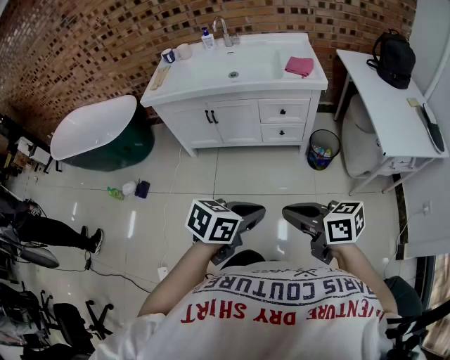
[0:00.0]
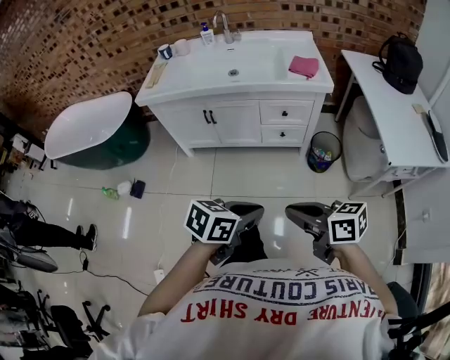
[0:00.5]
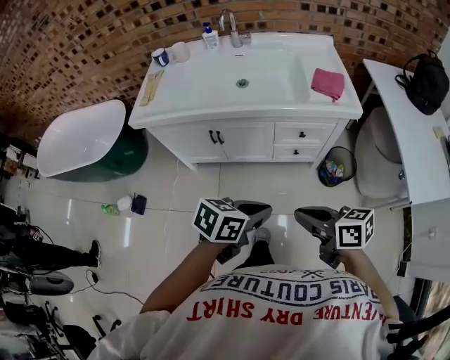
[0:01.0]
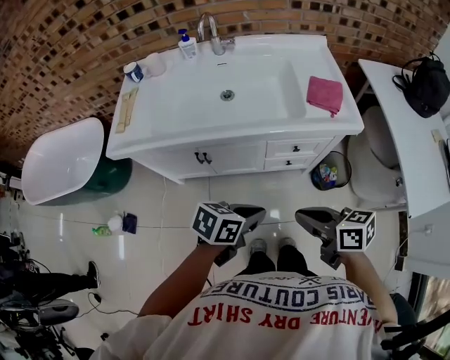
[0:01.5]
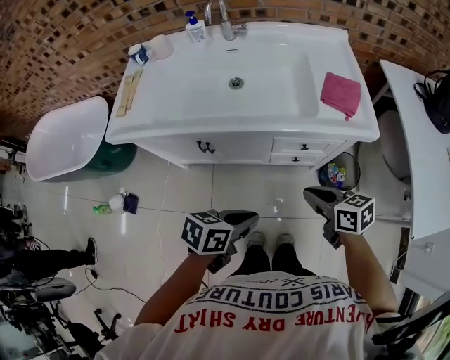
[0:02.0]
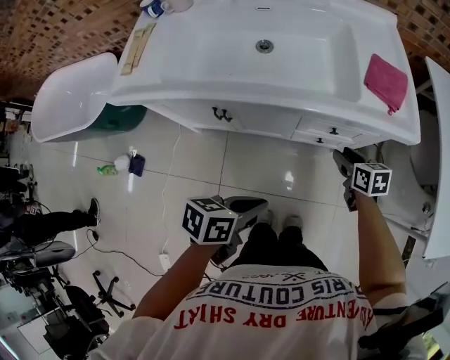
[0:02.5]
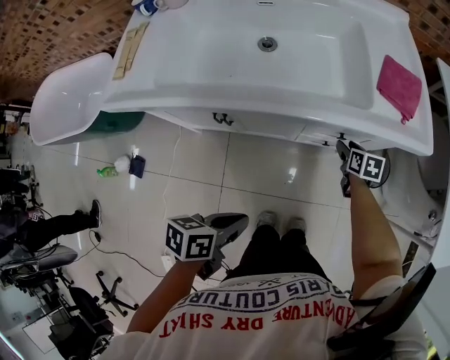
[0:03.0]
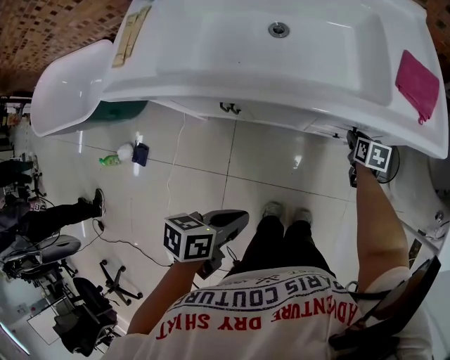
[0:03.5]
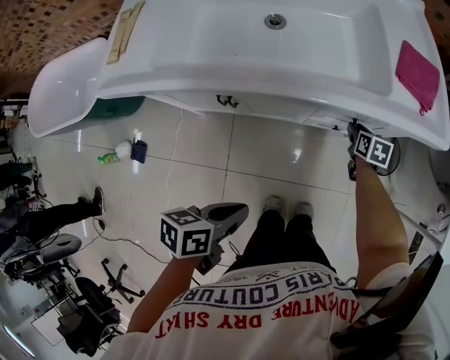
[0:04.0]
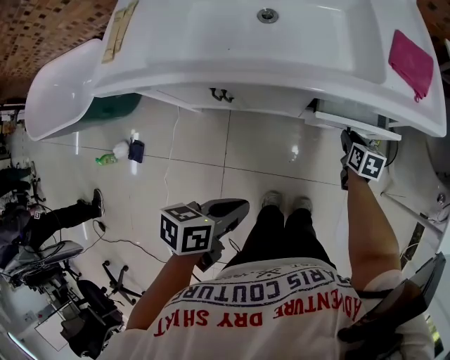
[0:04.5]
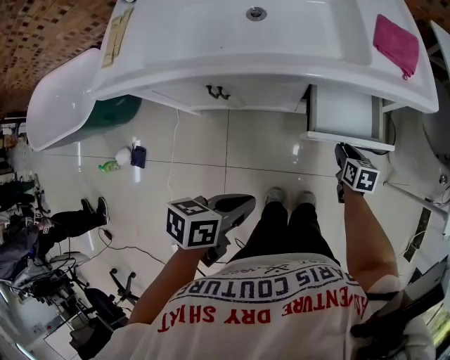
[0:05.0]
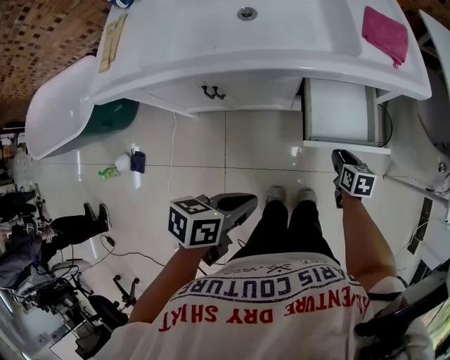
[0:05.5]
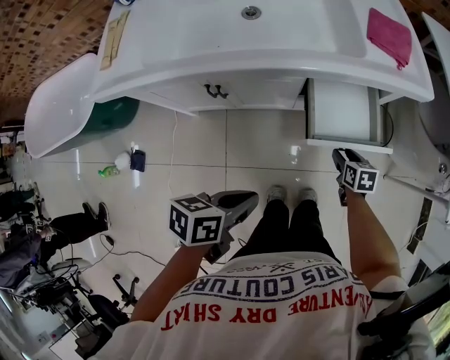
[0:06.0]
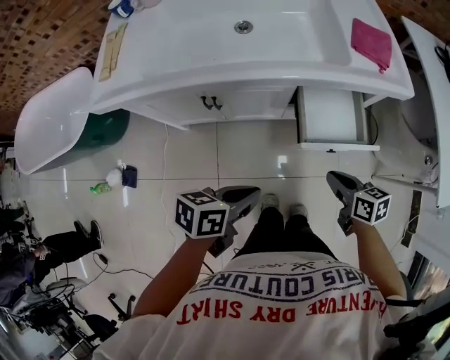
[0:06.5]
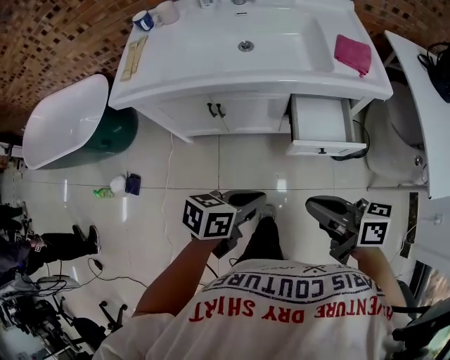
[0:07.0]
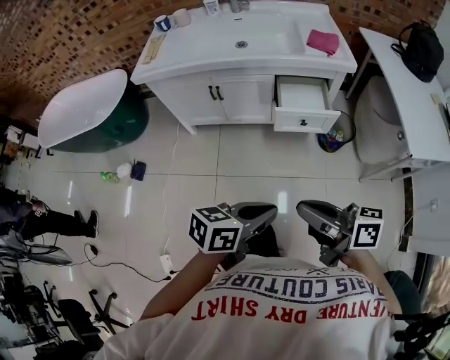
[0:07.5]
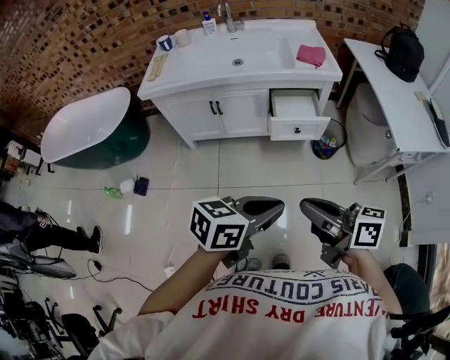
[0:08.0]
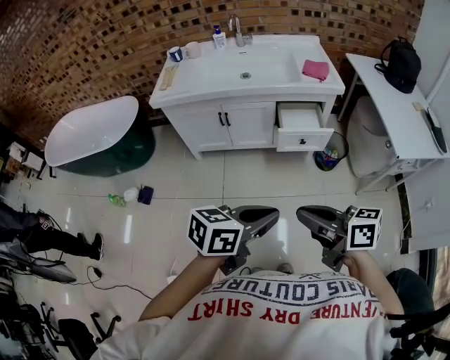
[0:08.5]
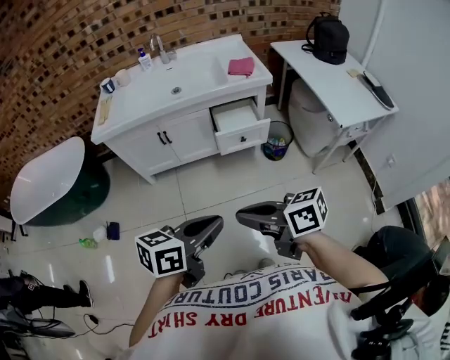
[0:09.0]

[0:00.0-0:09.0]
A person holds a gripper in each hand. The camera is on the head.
0.0 to 2.0 s: The two grippers travel together, about 40 cm.
2.0 to 4.5 s: The right gripper is displaced downward and forward by roughly 35 cm, changes its angle by approximately 40 degrees, and opens. The left gripper heads downward and to the left, covering about 15 cm.
4.5 to 7.0 s: The left gripper shifts by approximately 10 cm, and turns by approximately 20 degrees. Meanwhile the right gripper travels upward by roughly 35 cm, tips its fingers upward by roughly 40 degrees, and closes its fingers.
7.0 to 9.0 s: The left gripper ends up about 40 cm from where it was. Meanwhile the right gripper ends up roughly 35 cm from where it was.

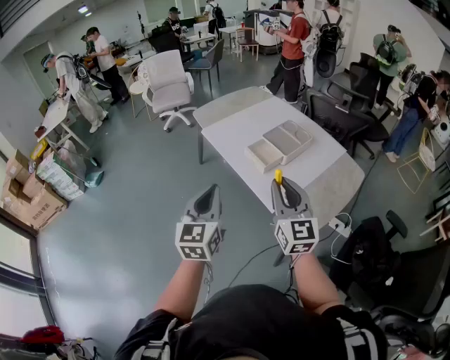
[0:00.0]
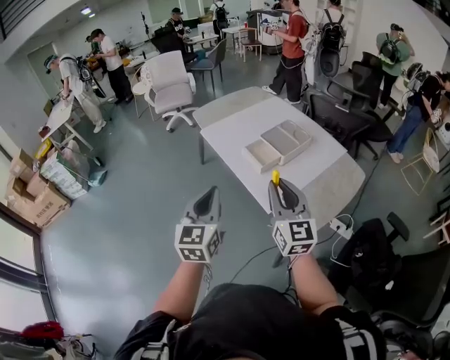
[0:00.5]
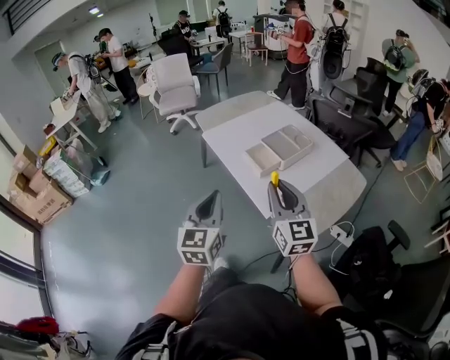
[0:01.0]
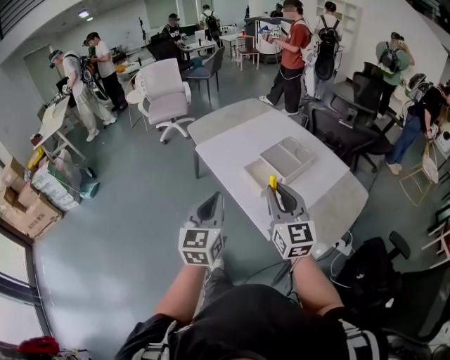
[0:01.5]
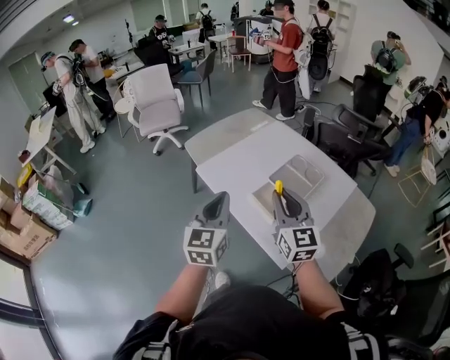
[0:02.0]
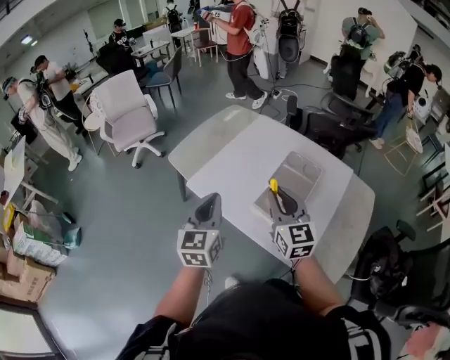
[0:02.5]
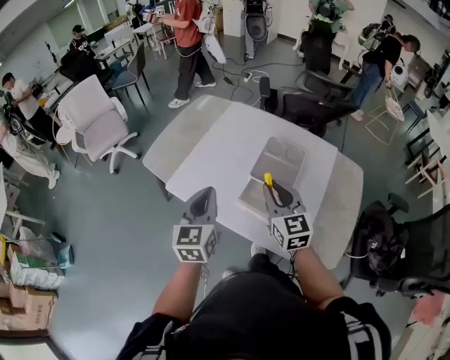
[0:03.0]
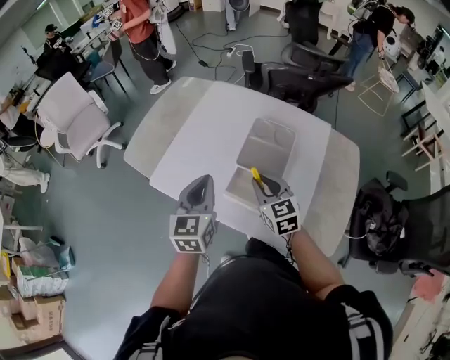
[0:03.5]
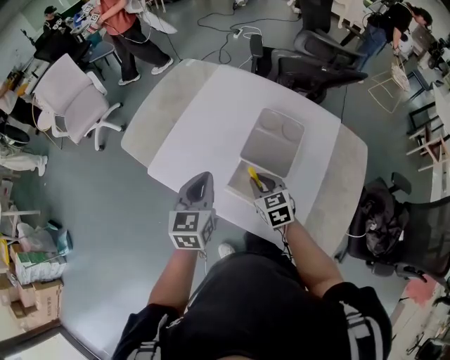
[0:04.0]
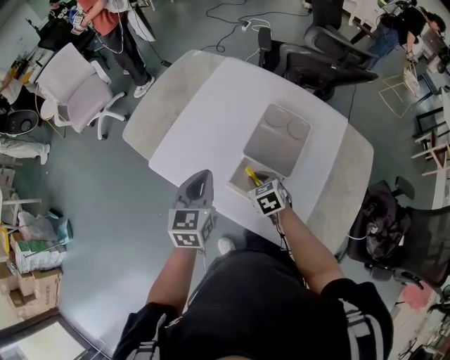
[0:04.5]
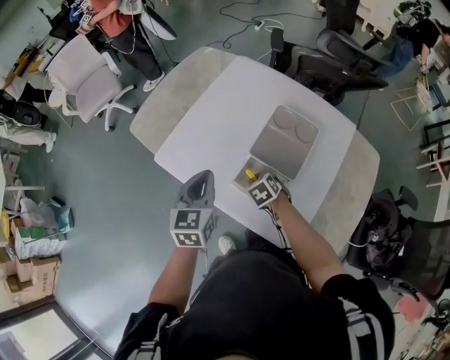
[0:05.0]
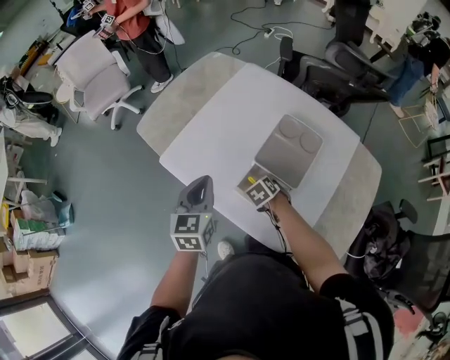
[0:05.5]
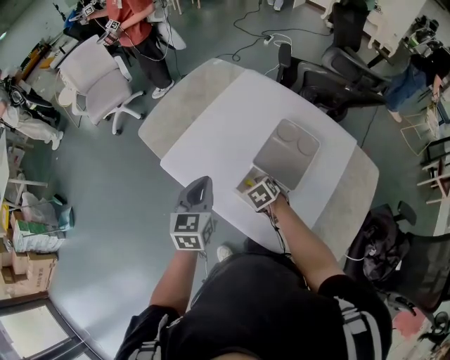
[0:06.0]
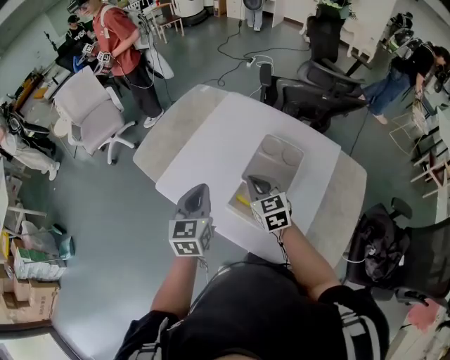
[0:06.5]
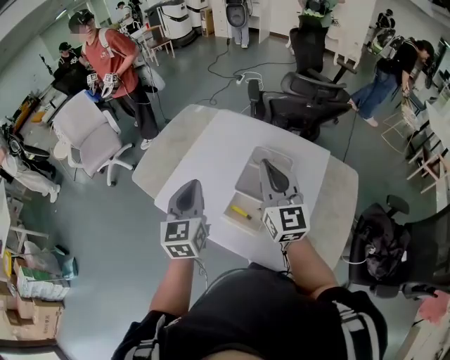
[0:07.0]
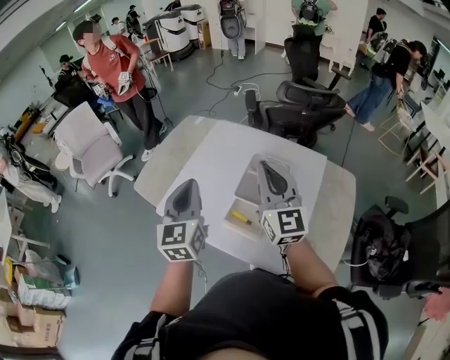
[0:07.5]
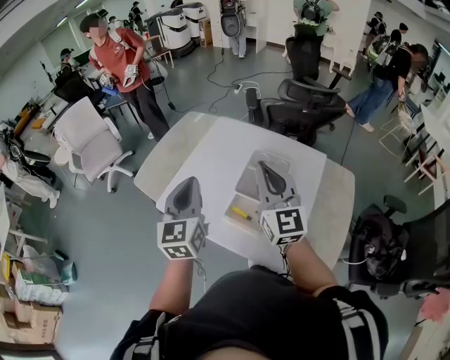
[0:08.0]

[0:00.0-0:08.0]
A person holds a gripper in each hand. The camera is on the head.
0.0 to 2.0 s: The two grippers go approximately 25 cm forward.
2.0 to 4.0 s: The right gripper travels downward and forward by approximately 30 cm, and points its fingers about 40 degrees further downward. The left gripper heads forward and downward, covering some 25 cm, and rotates approximately 20 degrees.
4.0 to 6.0 s: The right gripper travels downward by some 10 cm, and rotates roughly 30 degrees.
6.0 to 8.0 s: The left gripper shifts some 15 cm upward, and rotates roughly 20 degrees; the right gripper shifts about 40 cm upward, points its fingers approximately 70 degrees further upward, and closes up.

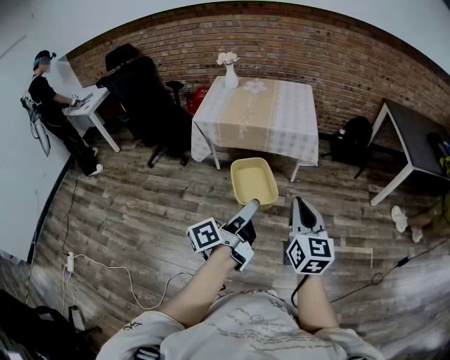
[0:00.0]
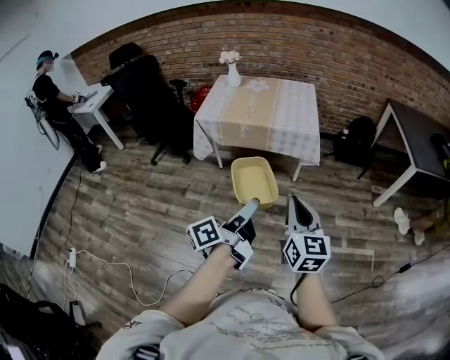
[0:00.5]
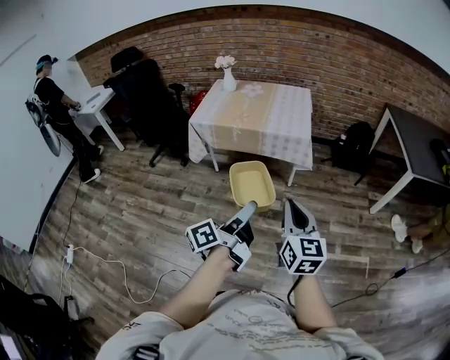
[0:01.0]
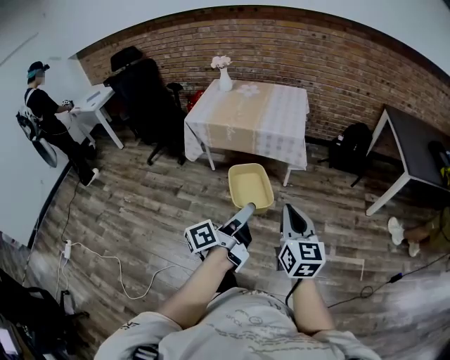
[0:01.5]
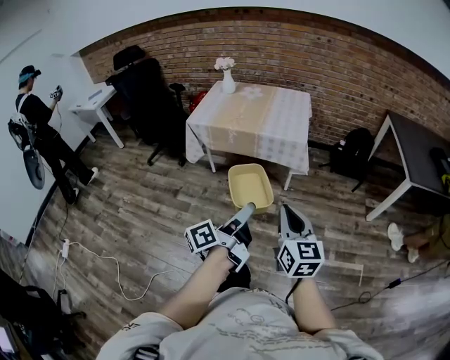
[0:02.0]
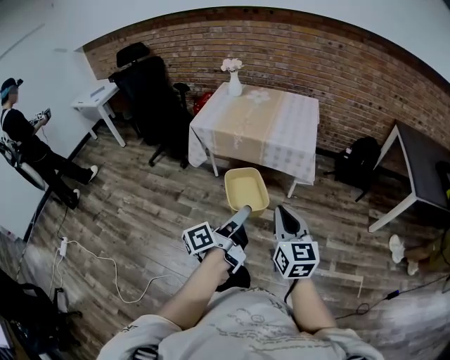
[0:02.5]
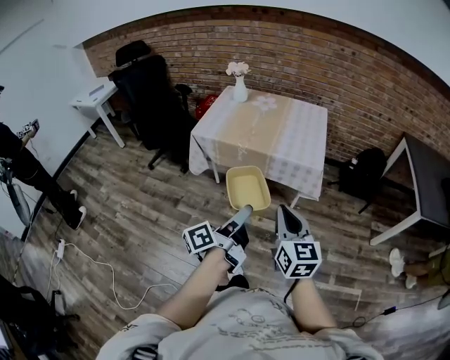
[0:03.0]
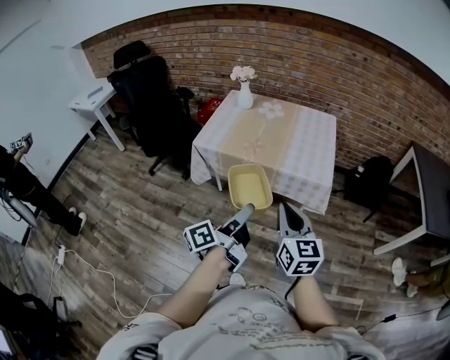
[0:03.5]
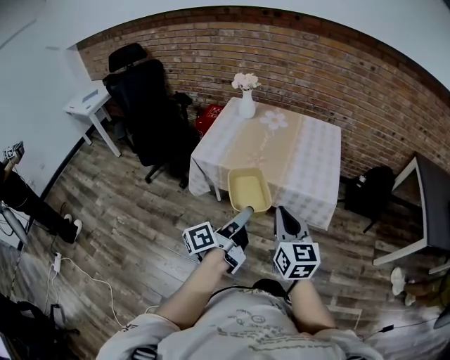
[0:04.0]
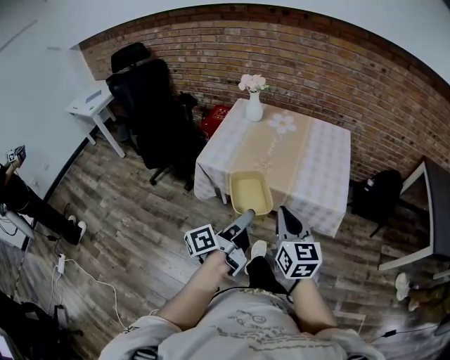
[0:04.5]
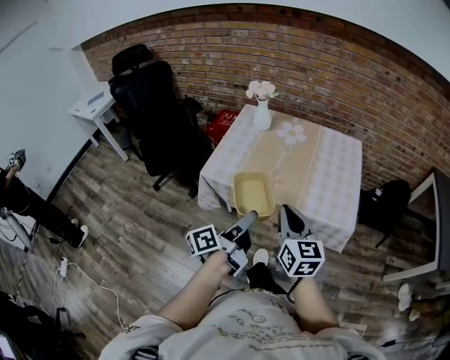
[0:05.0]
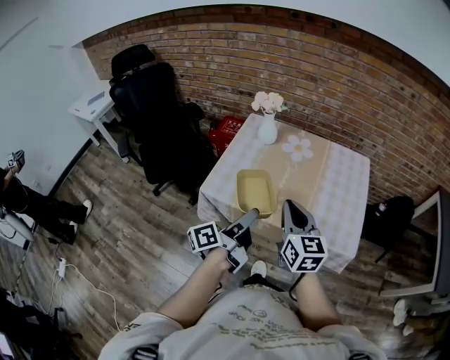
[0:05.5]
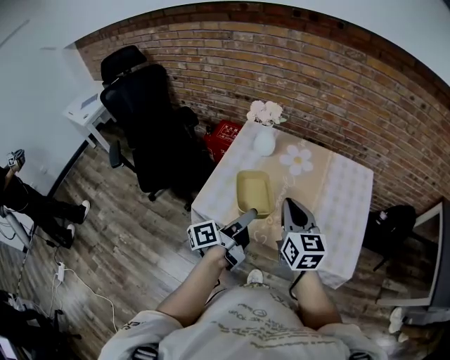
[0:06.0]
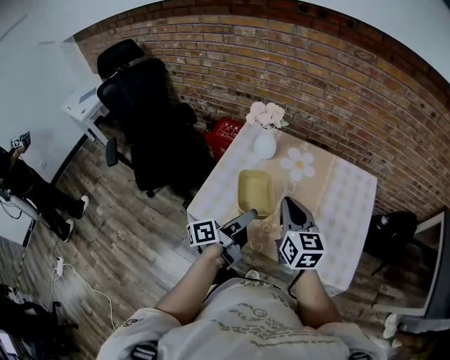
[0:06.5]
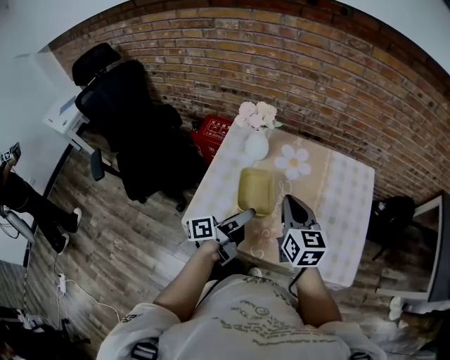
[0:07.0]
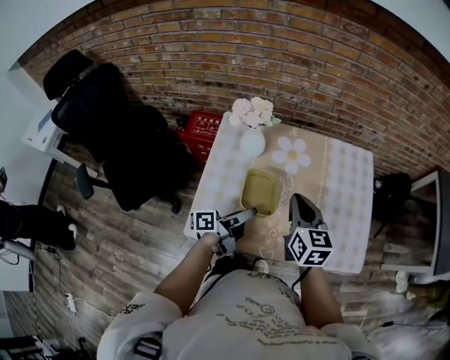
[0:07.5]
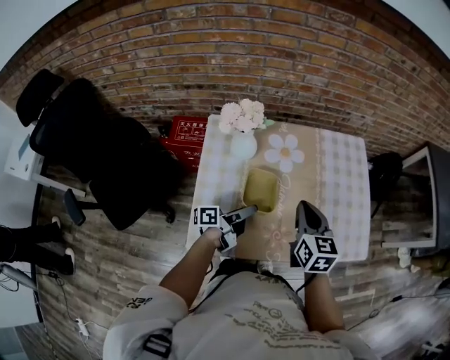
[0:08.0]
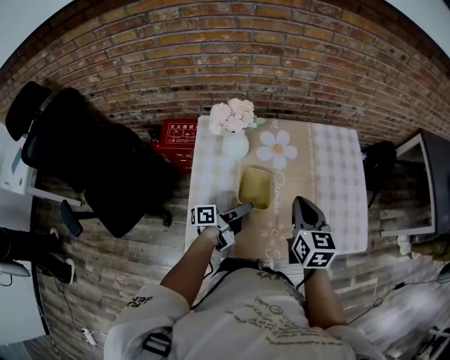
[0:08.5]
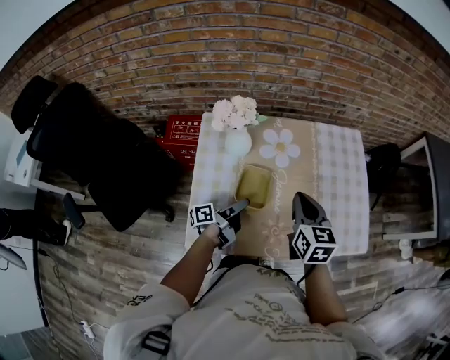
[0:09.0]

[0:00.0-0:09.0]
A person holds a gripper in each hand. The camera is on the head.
0.0 to 2.0 s: The grippers both shift to the right by some 10 cm.
2.0 to 4.5 s: The two grippers travel together, forward and to the left, roughly 40 cm.
4.5 to 7.0 s: The two grippers travel together, forward, some 40 cm.
7.0 to 9.0 s: The left gripper moves downward, forward and to the left, roughly 15 cm, and swivels some 20 degrees; the right gripper ends up approximately 5 cm from where it was, and changes its angle by some 20 degrees.

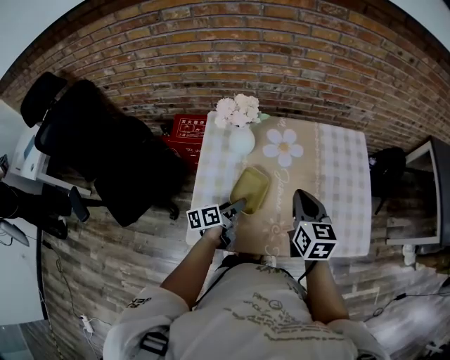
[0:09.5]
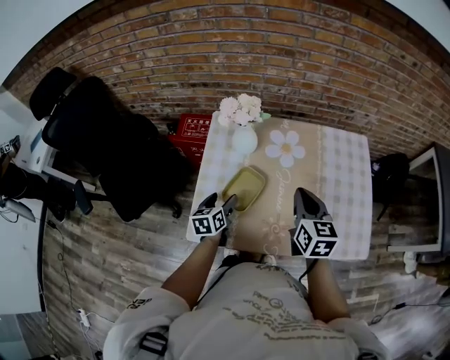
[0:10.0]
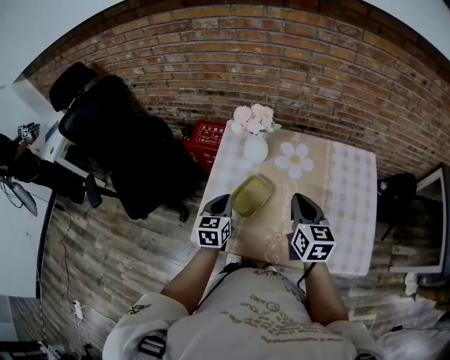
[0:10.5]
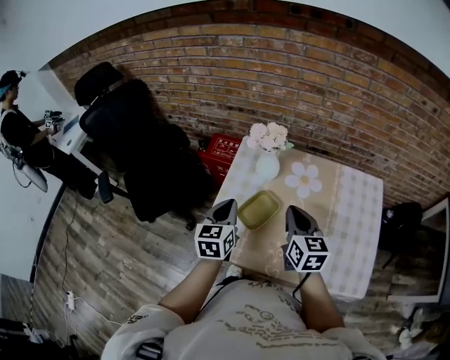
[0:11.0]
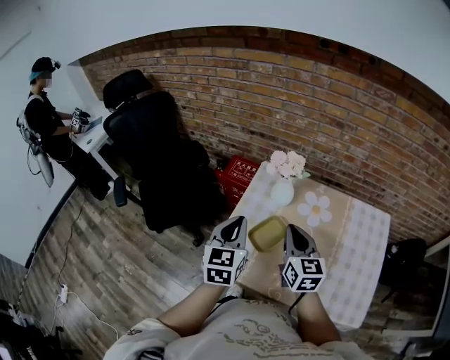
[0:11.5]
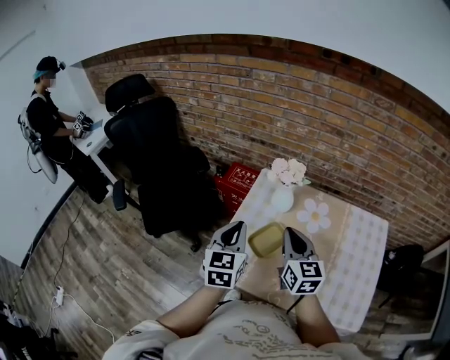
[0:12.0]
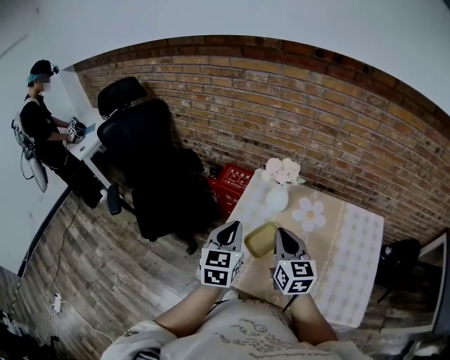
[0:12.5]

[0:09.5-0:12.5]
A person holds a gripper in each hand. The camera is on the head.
9.5 to 11.0 s: The left gripper heads upward, covering roughly 20 cm, swivels approximately 60 degrees, and closes. The right gripper shifts by about 5 cm.
11.0 to 12.5 s: The right gripper heads to the left, covering roughly 5 cm. The left gripper heads upward, covering some 5 cm.
